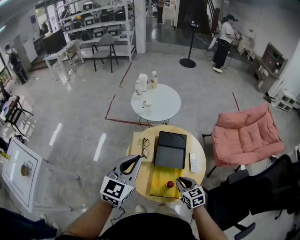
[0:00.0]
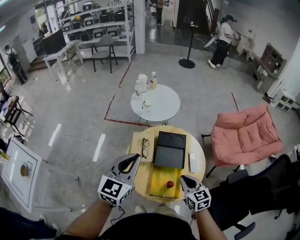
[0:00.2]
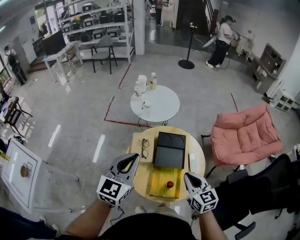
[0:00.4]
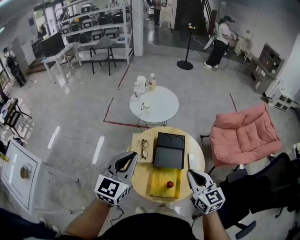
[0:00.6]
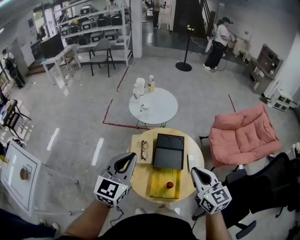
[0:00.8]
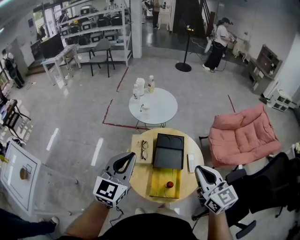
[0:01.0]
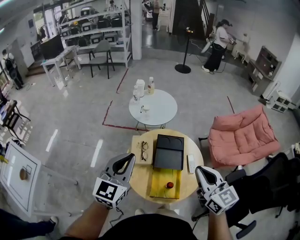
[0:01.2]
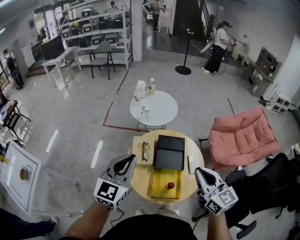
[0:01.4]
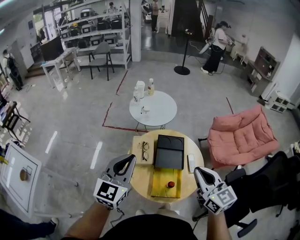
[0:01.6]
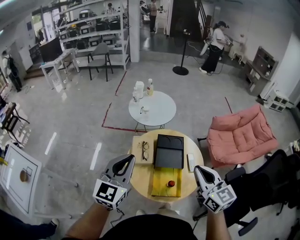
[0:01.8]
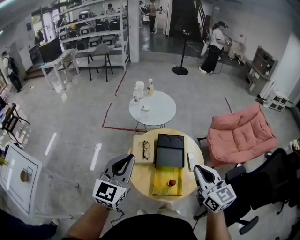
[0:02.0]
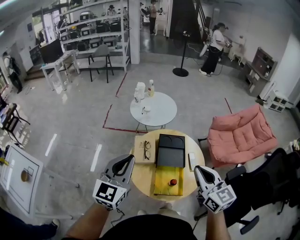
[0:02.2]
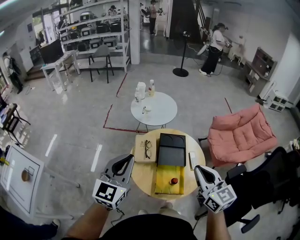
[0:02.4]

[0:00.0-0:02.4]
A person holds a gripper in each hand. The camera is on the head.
0:00.0 to 0:01.2: The right gripper shifts approximately 25 cm upward, and changes its angle by about 30 degrees; the left gripper ends up about 5 cm from where it was.
0:01.2 to 0:02.4: The left gripper moves about 5 cm; the right gripper changes place by approximately 5 cm.

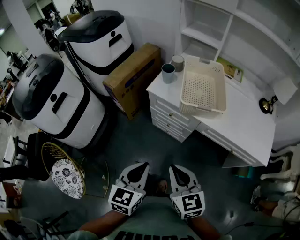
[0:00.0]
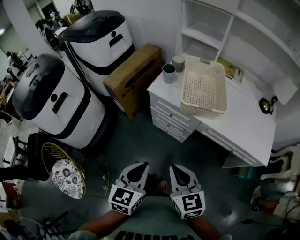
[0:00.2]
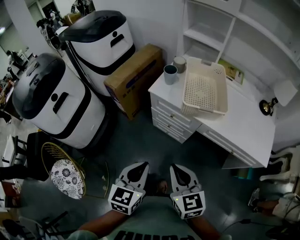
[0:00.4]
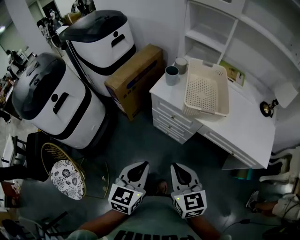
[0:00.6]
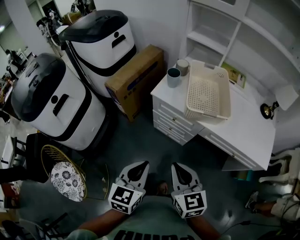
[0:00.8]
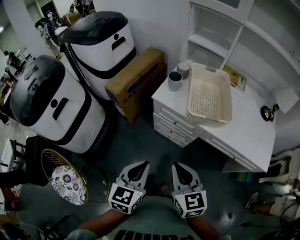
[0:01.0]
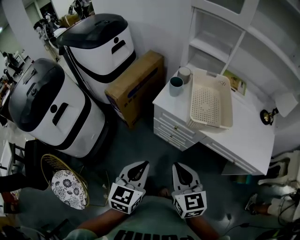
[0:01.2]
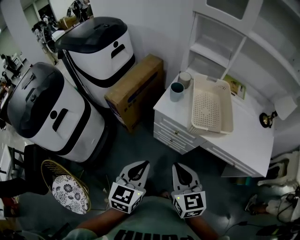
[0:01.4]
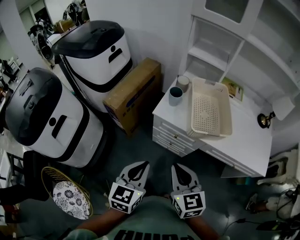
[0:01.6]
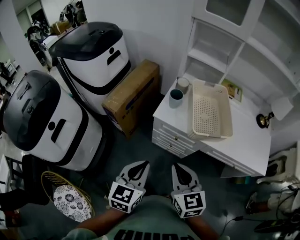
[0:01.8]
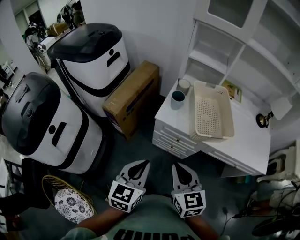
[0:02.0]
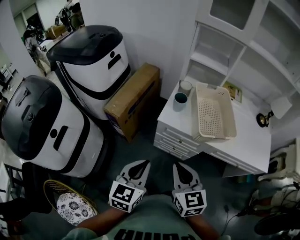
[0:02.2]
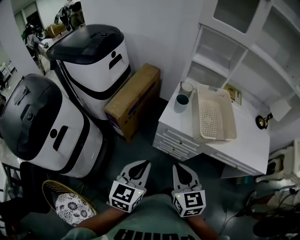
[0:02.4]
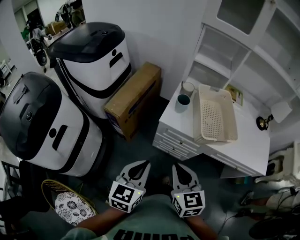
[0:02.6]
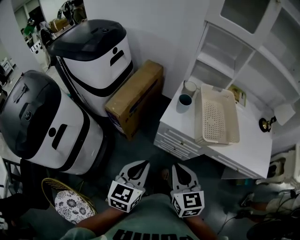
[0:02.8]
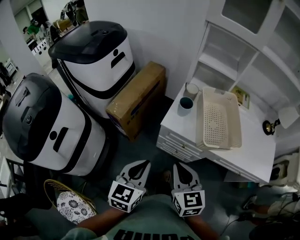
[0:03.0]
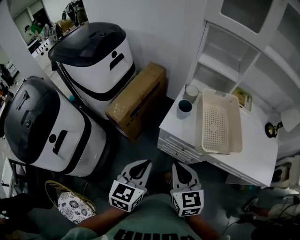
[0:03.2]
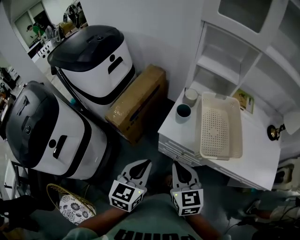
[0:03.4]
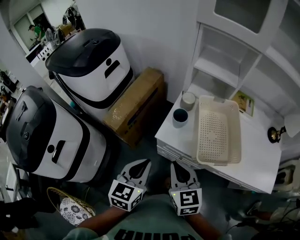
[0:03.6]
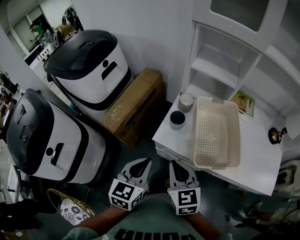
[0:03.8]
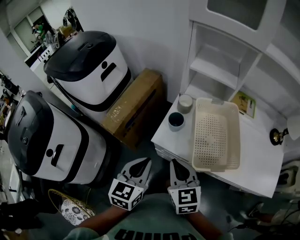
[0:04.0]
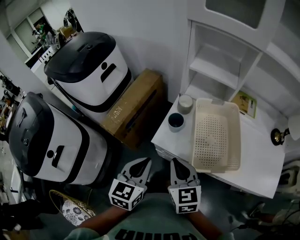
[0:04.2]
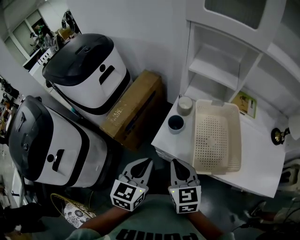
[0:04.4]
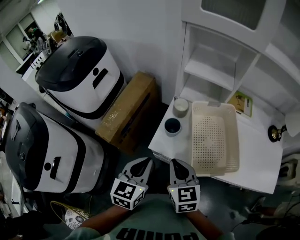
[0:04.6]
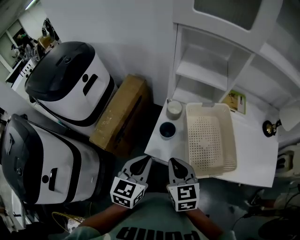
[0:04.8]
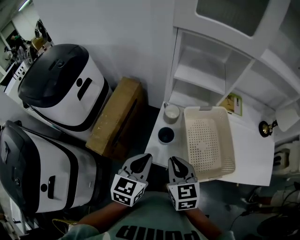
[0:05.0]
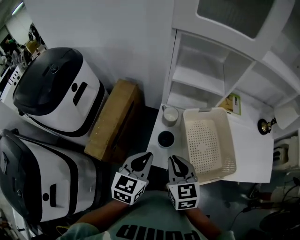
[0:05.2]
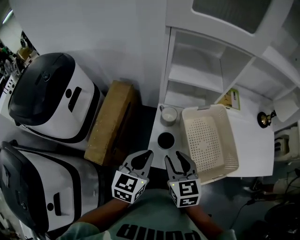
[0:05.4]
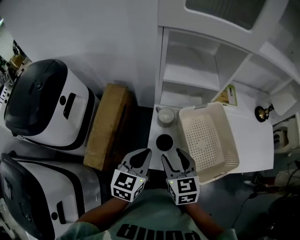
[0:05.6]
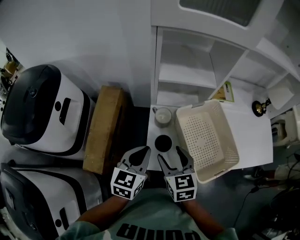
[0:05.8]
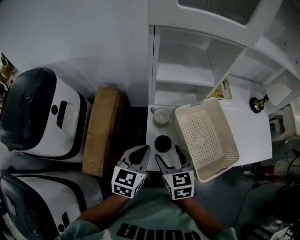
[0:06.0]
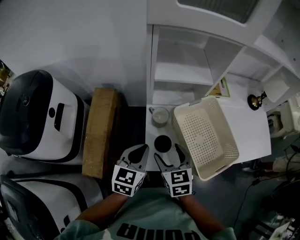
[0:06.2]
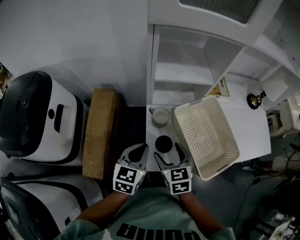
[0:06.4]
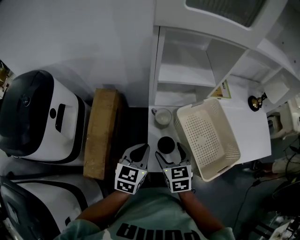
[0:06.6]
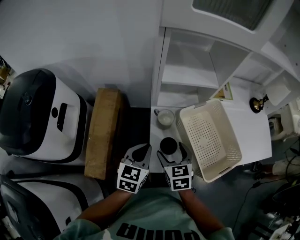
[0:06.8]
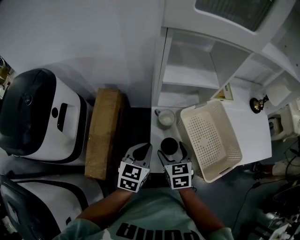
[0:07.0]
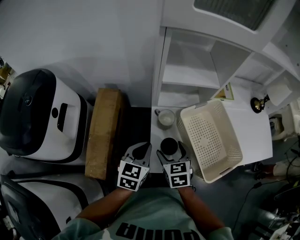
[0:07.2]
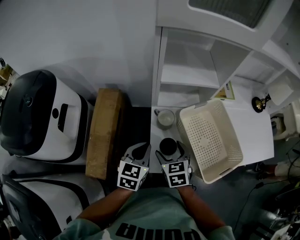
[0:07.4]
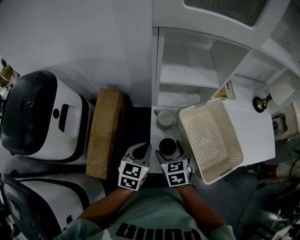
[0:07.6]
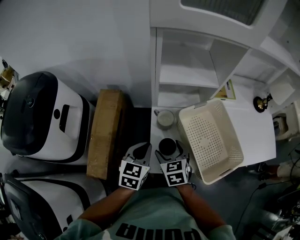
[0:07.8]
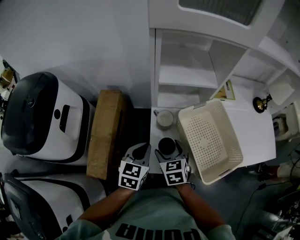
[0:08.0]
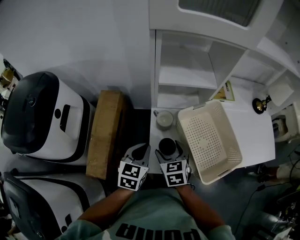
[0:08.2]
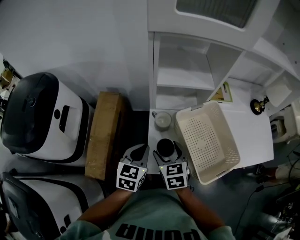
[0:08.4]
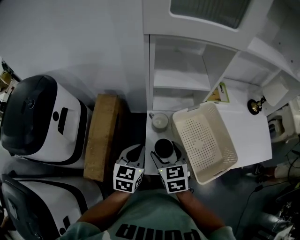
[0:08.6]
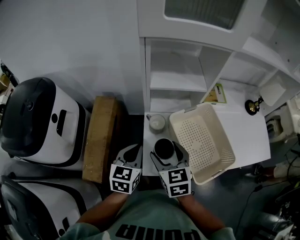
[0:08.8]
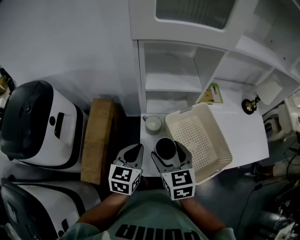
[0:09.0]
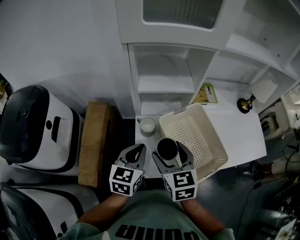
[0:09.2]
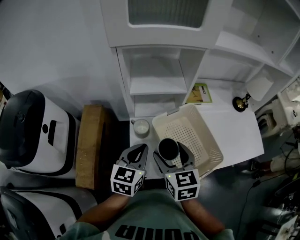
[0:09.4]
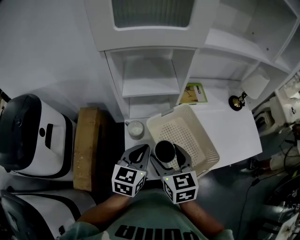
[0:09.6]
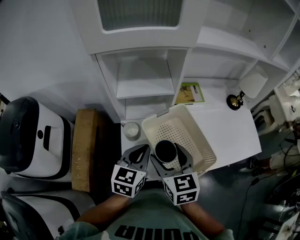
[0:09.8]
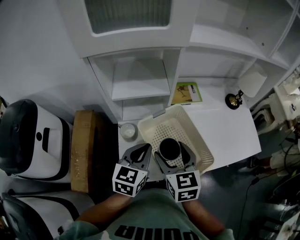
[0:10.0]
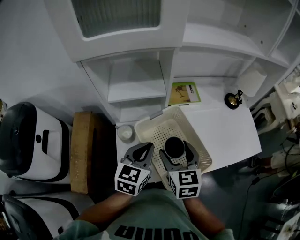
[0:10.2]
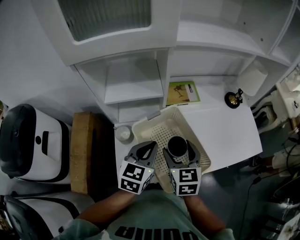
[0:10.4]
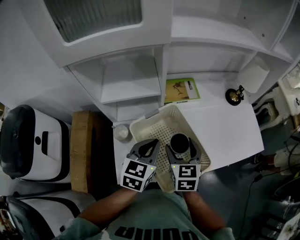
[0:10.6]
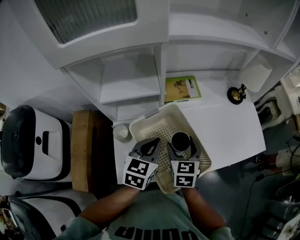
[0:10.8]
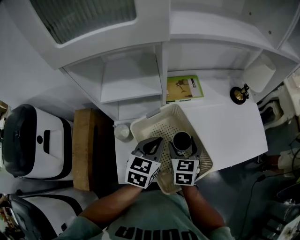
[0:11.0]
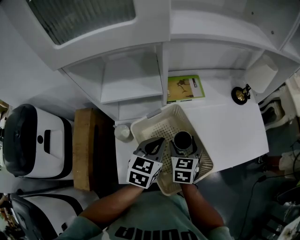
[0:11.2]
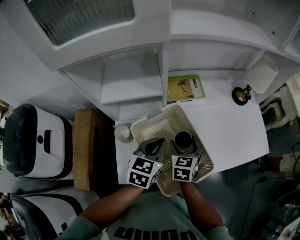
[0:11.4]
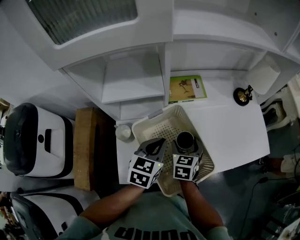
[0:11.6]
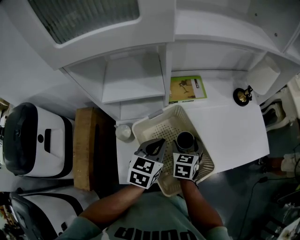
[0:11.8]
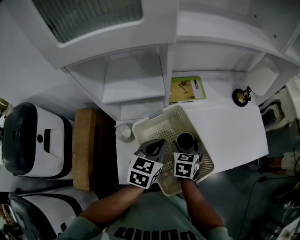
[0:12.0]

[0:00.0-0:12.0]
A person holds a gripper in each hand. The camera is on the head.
0:00.0 to 0:01.6: The two grippers go about 15 cm forward and to the left.
0:01.6 to 0:03.0: The grippers both shift forward and to the left by approximately 10 cm.
0:03.0 to 0:04.4: The left gripper is displaced forward and to the right by some 15 cm; the right gripper moves forward, approximately 15 cm.
0:04.4 to 0:06.0: The right gripper ends up some 15 cm from where it was, rotates roughly 20 degrees, and opens its fingers, while the left gripper ends up about 20 cm from where it was, and rotates roughly 30 degrees.
0:06.0 to 0:07.6: The left gripper shifts by about 5 cm; the right gripper moves downward, roughly 5 cm.
0:07.6 to 0:09.0: The left gripper goes roughly 5 cm upward. Meanwhile the right gripper is displaced upward by approximately 15 cm.
0:09.0 to 0:10.4: The two grippers go about 20 cm to the right.
0:10.4 to 0:12.0: The right gripper travels downward and forward by roughly 15 cm. The left gripper shifts by some 5 cm.

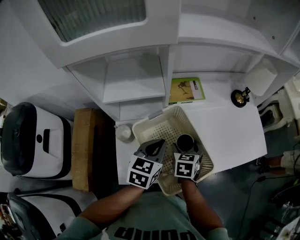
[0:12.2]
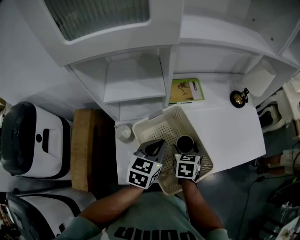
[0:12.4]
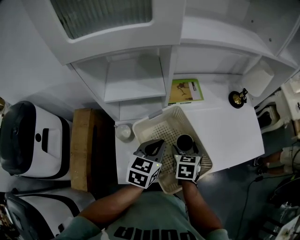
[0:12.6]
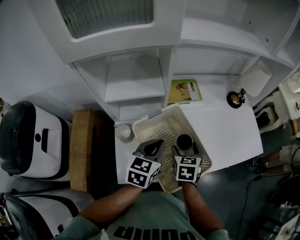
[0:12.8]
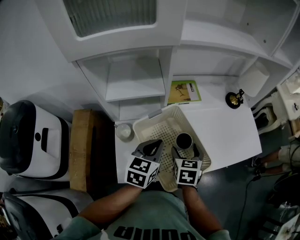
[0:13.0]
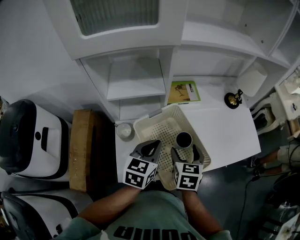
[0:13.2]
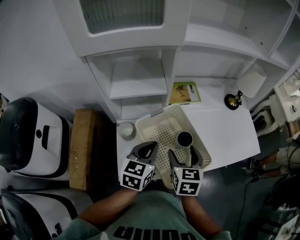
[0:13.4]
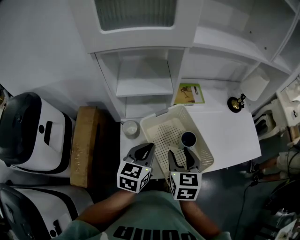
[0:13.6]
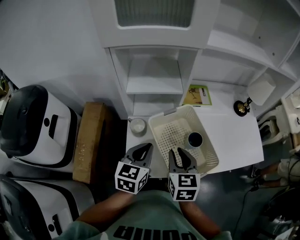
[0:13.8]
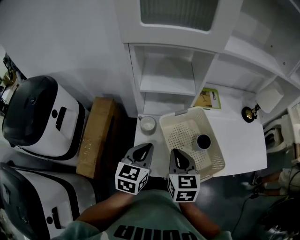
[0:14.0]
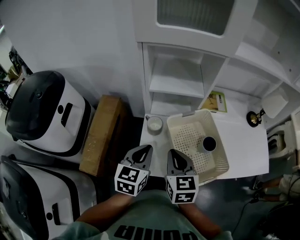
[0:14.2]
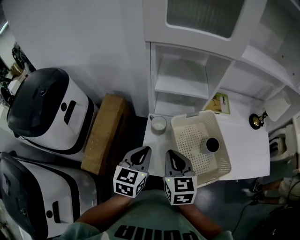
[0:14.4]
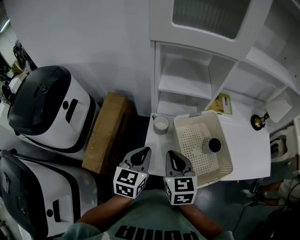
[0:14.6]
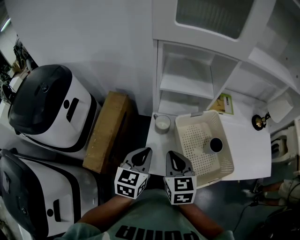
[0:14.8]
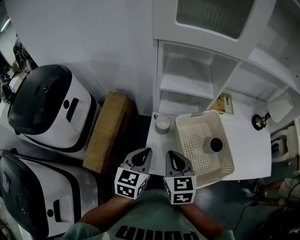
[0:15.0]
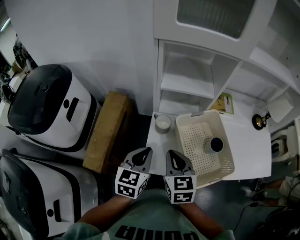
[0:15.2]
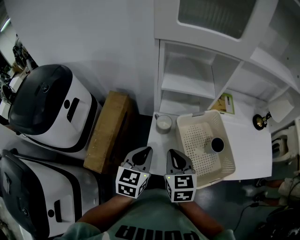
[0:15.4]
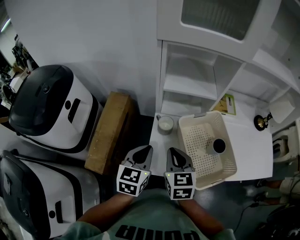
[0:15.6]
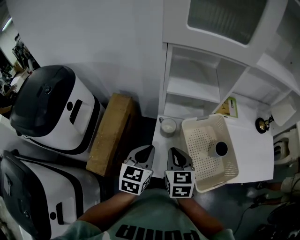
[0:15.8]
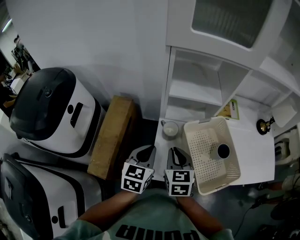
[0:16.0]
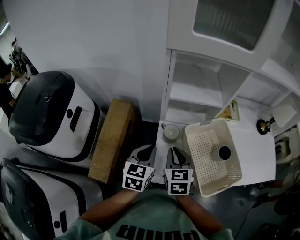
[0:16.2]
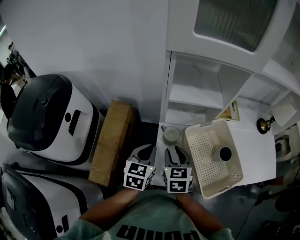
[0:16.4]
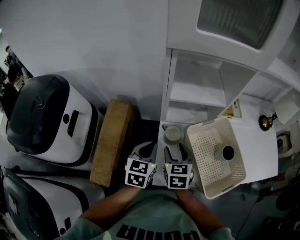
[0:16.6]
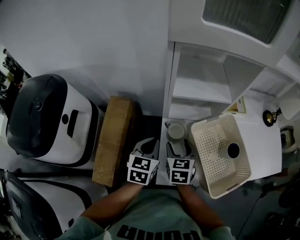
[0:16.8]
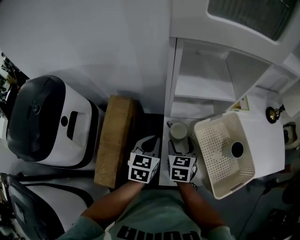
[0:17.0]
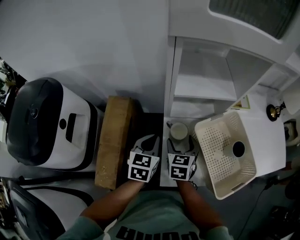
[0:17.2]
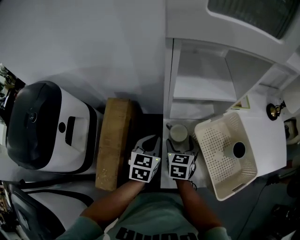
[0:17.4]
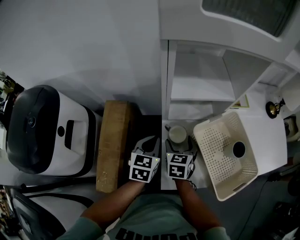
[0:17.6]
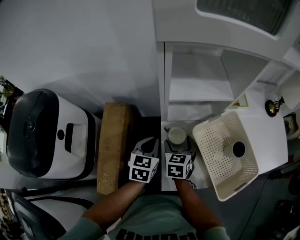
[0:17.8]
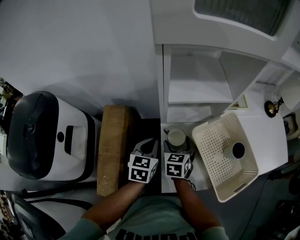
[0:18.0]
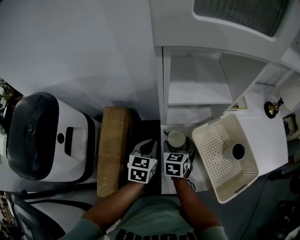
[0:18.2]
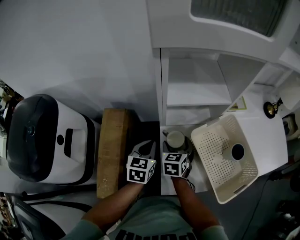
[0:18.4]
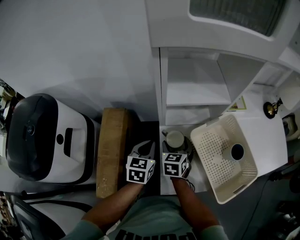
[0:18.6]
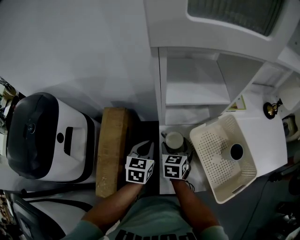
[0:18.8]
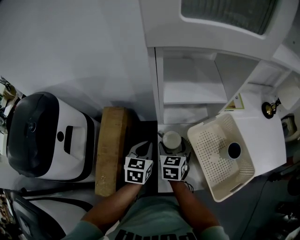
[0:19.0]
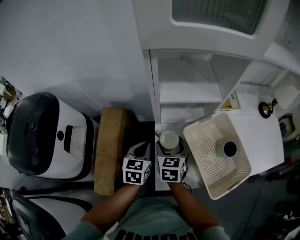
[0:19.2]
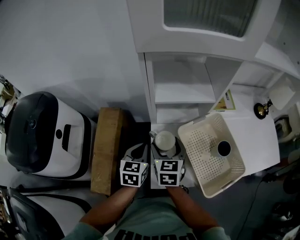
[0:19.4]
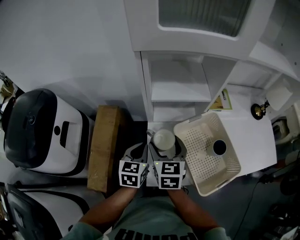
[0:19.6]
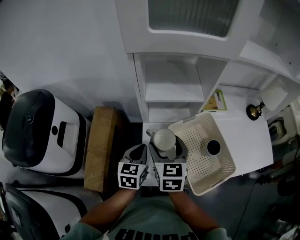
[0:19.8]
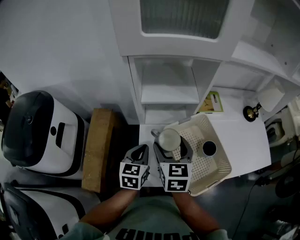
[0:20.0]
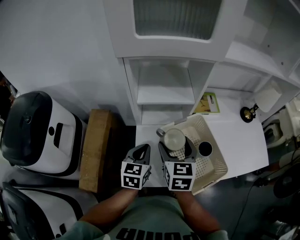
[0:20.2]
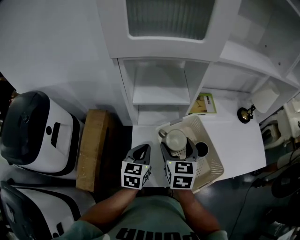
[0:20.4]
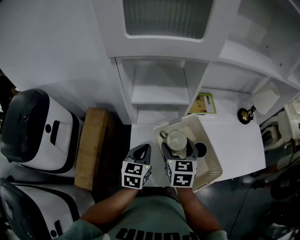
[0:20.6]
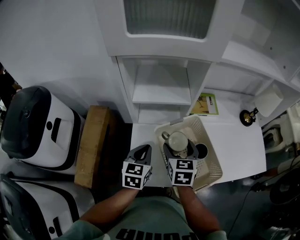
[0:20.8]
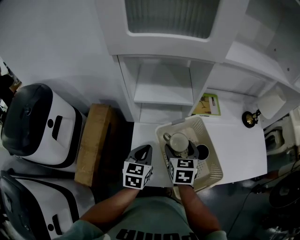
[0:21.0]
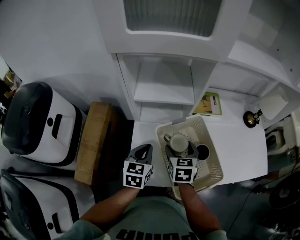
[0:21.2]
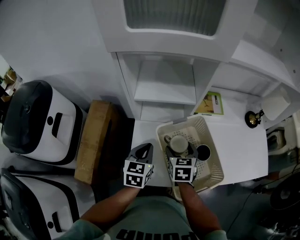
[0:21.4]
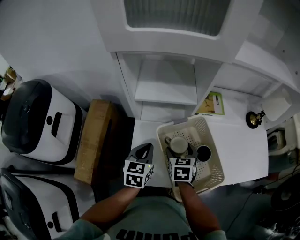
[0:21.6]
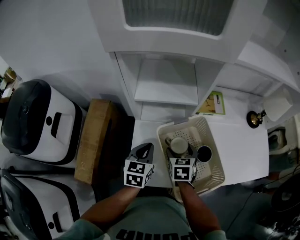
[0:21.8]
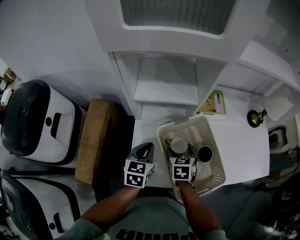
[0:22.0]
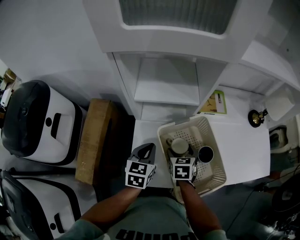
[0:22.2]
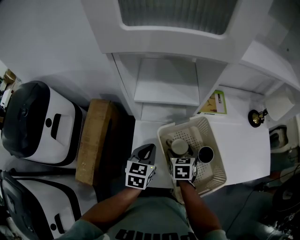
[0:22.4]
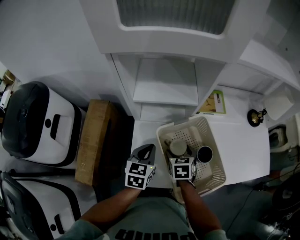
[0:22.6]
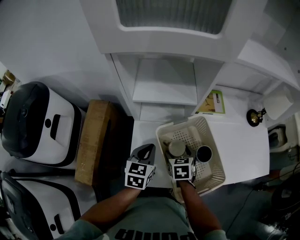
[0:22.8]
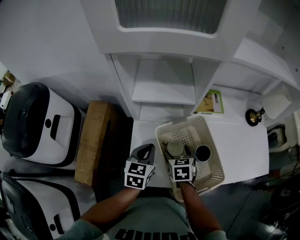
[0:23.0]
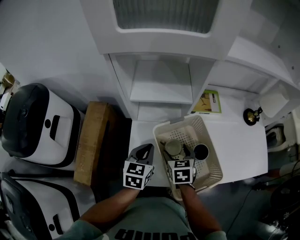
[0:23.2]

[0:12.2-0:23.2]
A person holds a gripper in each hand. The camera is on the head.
0:12.2 to 0:13.8: The left gripper shifts some 15 cm backward and to the left. Meanwhile the right gripper travels upward, backward and to the left by some 20 cm, changes its angle by approximately 20 degrees, and closes up.
0:13.8 to 0:15.4: The two grippers go approximately 10 cm to the left.
0:15.4 to 0:17.0: The right gripper goes roughly 15 cm forward and downward, and opens; the left gripper is displaced forward, downward and to the left by about 15 cm.
0:17.0 to 0:18.4: The right gripper shifts by some 5 cm, while the left gripper shifts by approximately 5 cm.
0:18.4 to 0:20.0: The right gripper heads upward and to the right, covering approximately 20 cm; the left gripper travels to the right, upward and backward by approximately 15 cm.
0:20.0 to 0:21.6: The left gripper moves to the right, approximately 5 cm, while the right gripper goes approximately 15 cm downward and to the right.
0:21.6 to 0:23.2: The grippers stay close to where they were, moving slightly.
